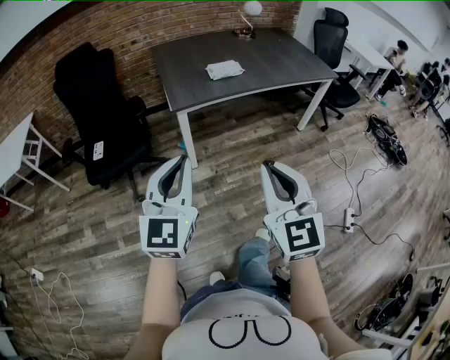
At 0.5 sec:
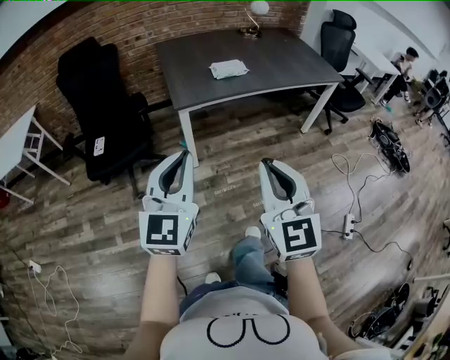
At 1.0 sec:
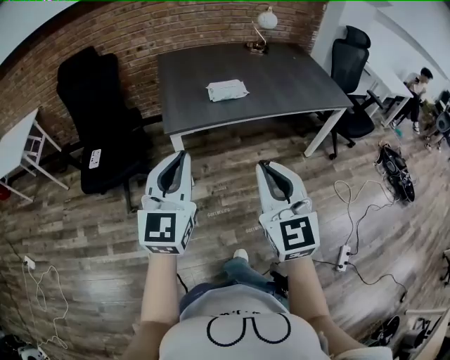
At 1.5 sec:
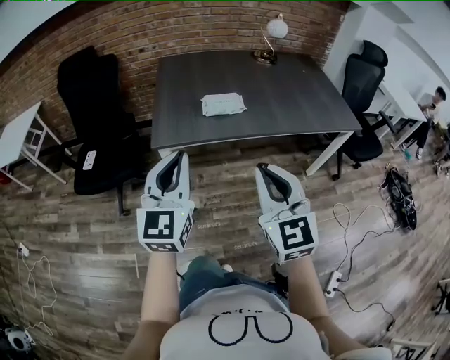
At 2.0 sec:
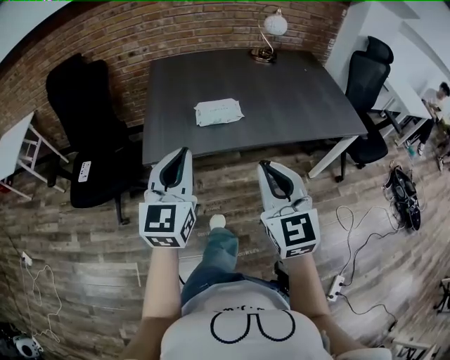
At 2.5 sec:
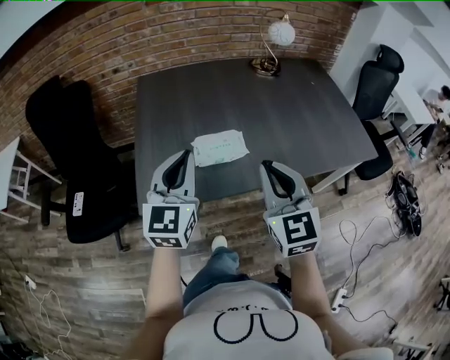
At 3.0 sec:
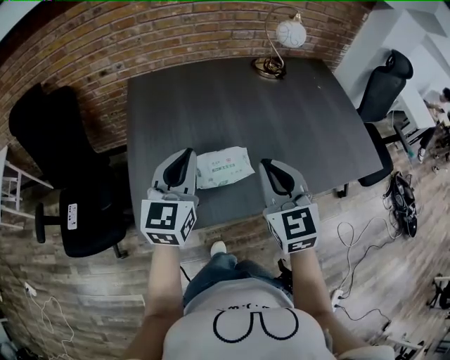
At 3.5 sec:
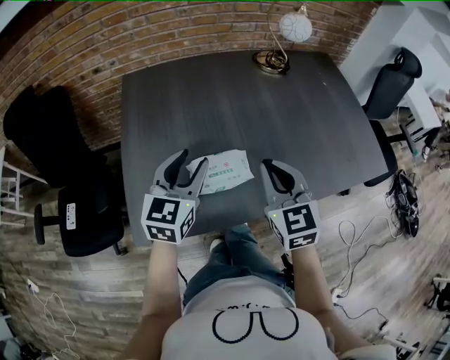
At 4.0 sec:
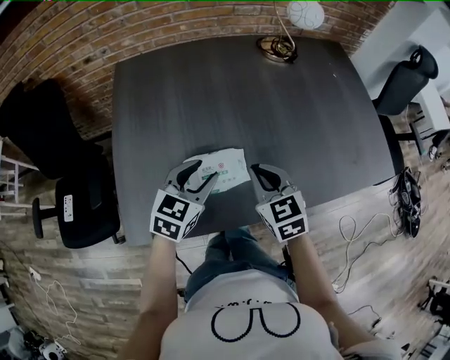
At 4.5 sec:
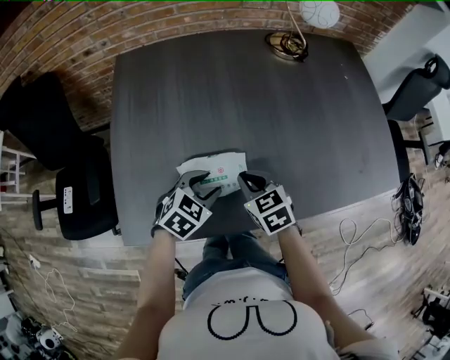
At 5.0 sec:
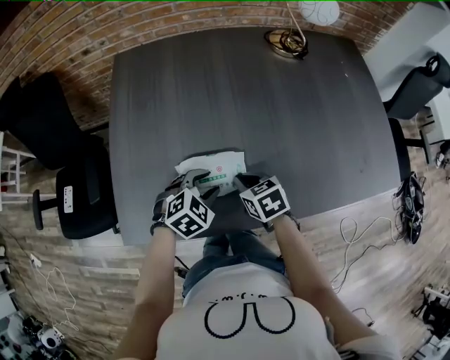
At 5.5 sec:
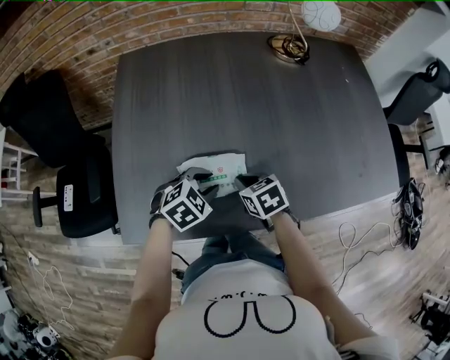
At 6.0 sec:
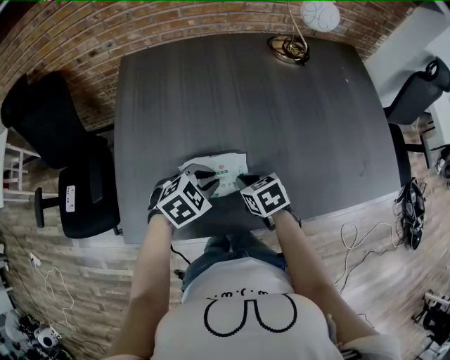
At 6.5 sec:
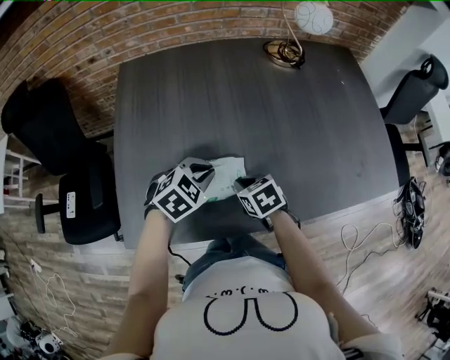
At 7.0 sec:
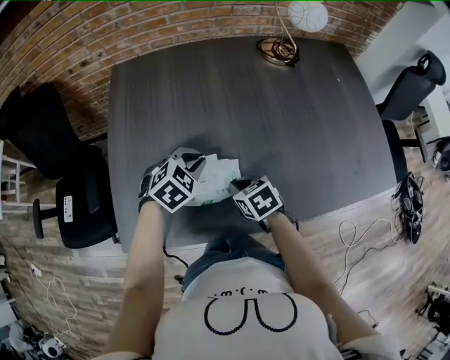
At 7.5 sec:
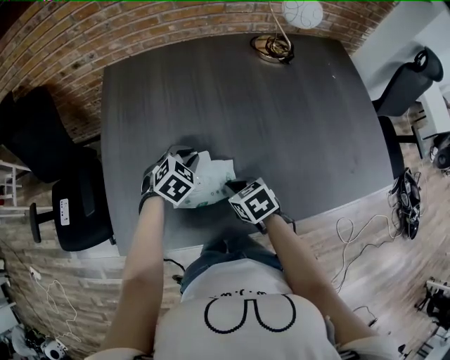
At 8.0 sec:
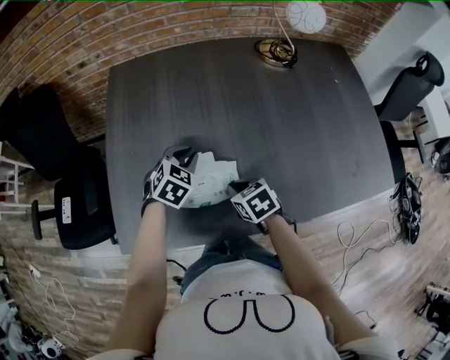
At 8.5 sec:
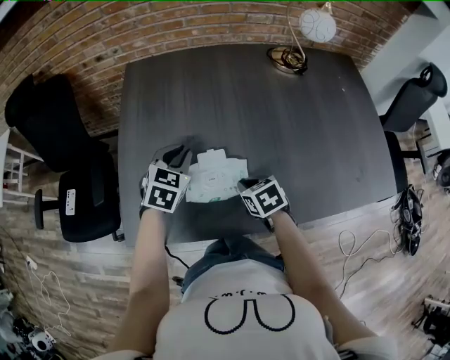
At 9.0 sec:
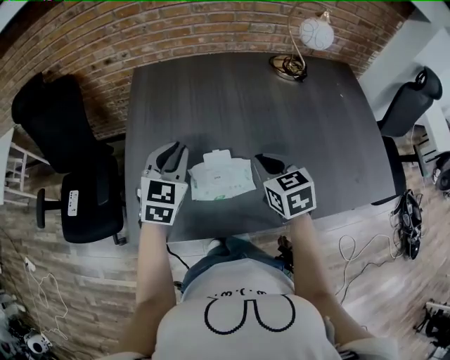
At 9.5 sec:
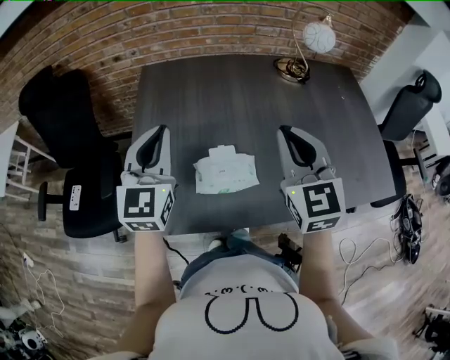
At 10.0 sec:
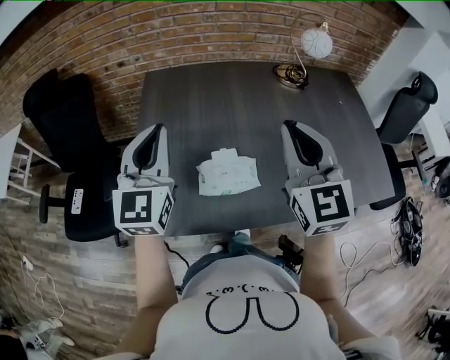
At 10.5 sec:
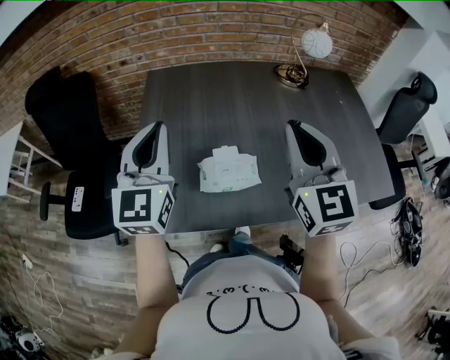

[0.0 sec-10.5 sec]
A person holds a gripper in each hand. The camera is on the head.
0.0 sec to 2.0 sec: The pair of grippers is taken forward and to the right, about 40 cm.
2.0 sec to 4.0 sec: Both grippers are carried forward, some 40 cm. The grippers both shift downward by about 20 cm. The left gripper points its fingers some 30 degrees further downward, and opens its fingers; the right gripper turns by about 30 degrees.
4.0 sec to 6.5 sec: The left gripper heads downward, covering roughly 5 cm, changes its angle by about 30 degrees, and closes. Meanwhile the right gripper travels downward by approximately 10 cm, and rotates some 30 degrees.
6.5 sec to 8.5 sec: The left gripper is displaced to the left and forward by roughly 10 cm, and turns by approximately 30 degrees.
8.5 sec to 10.5 sec: Both grippers travel together upward, some 30 cm. The right gripper tips its fingers upward by some 60 degrees; the left gripper tips its fingers upward by some 40 degrees.

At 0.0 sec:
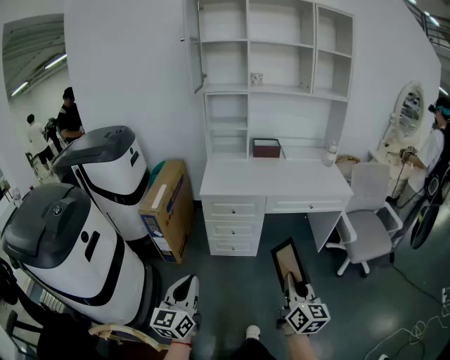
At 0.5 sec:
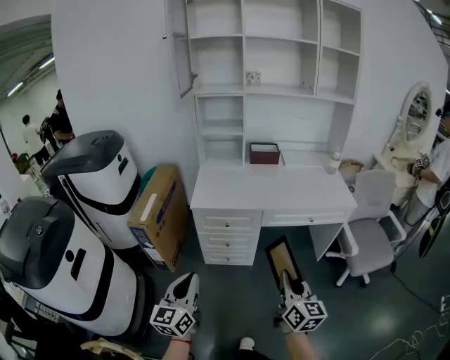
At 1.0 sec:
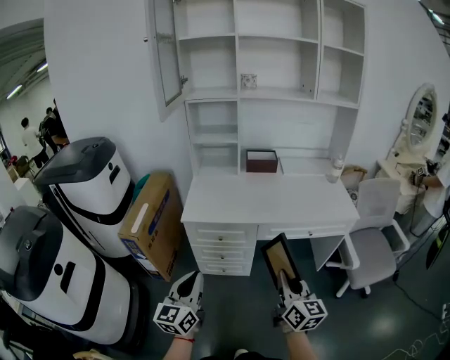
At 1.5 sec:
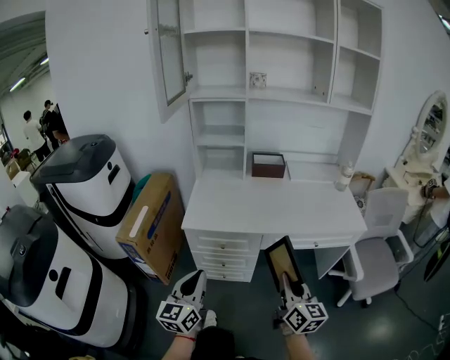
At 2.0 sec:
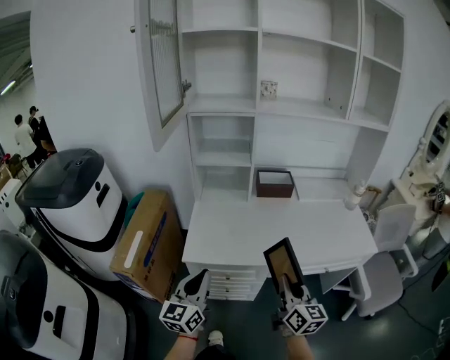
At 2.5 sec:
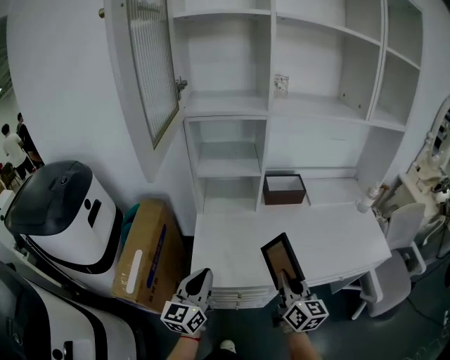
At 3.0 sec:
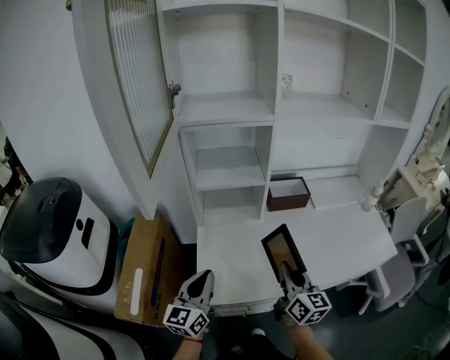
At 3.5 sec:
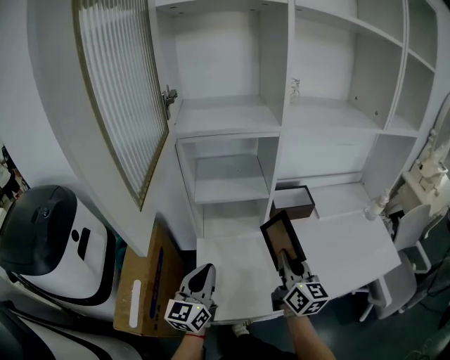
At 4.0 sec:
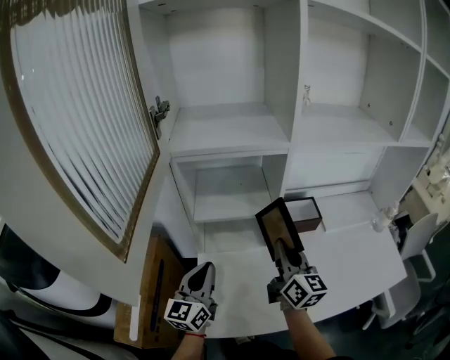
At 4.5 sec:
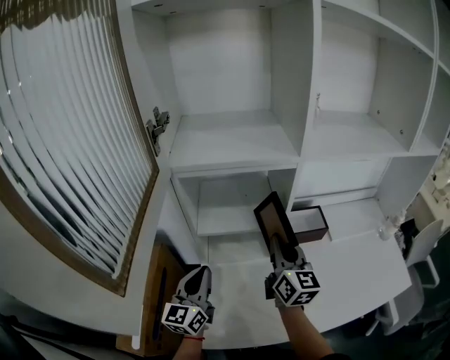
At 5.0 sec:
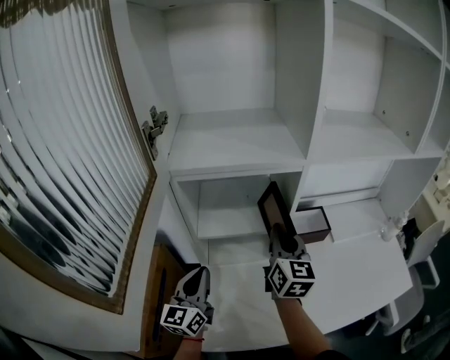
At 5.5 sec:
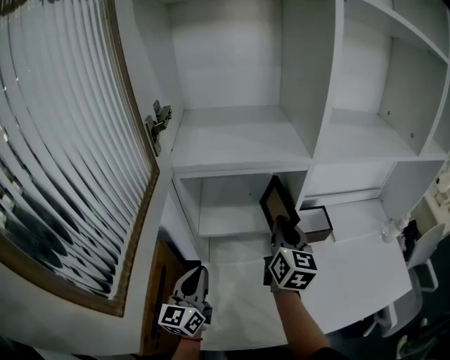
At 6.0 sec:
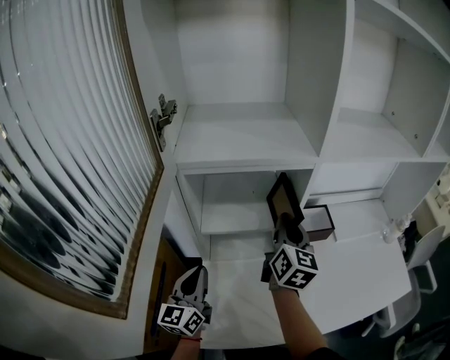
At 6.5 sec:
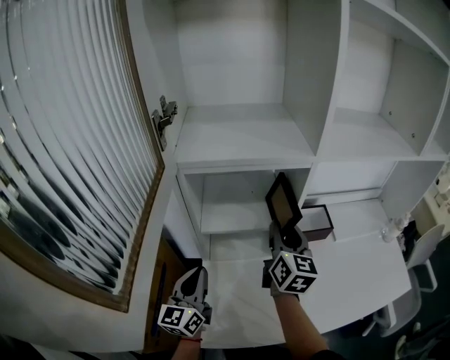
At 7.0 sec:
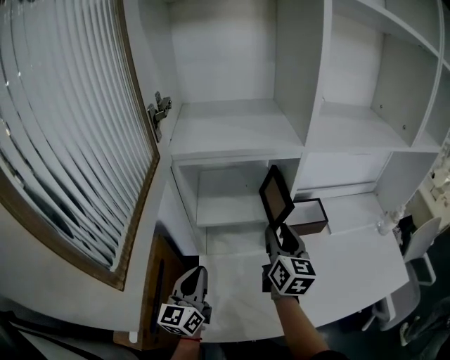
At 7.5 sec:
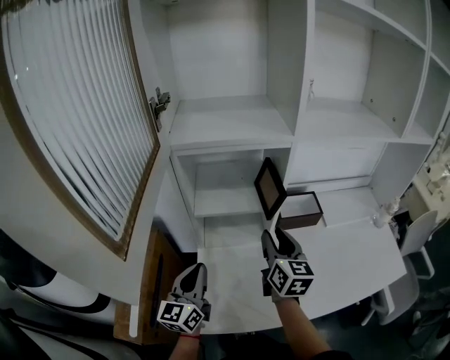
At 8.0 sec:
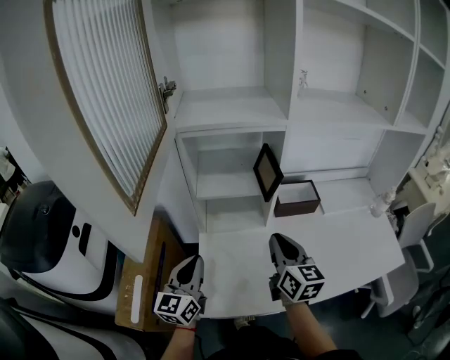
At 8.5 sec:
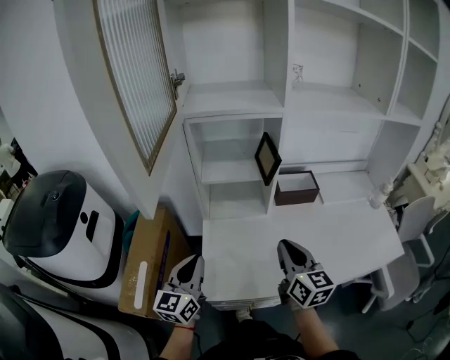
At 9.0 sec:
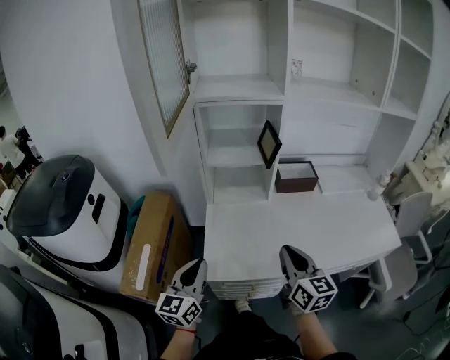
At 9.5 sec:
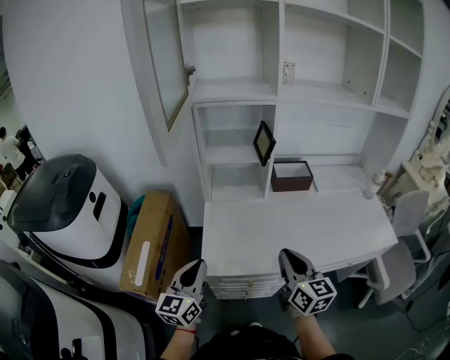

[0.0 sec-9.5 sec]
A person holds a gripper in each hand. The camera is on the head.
0.0 sec to 2.0 sec: Both grippers are carried forward, about 50 cm.
2.0 sec to 4.0 sec: The two grippers go roughly 35 cm forward.
4.0 sec to 5.5 sec: The right gripper goes roughly 10 cm forward, while the left gripper ends up about 5 cm from where it was.
5.5 sec to 7.5 sec: The left gripper travels backward by about 5 cm. The right gripper shifts some 10 cm backward, and opens up.
7.5 sec to 9.5 sec: Both grippers move backward, roughly 25 cm. The right gripper closes up.

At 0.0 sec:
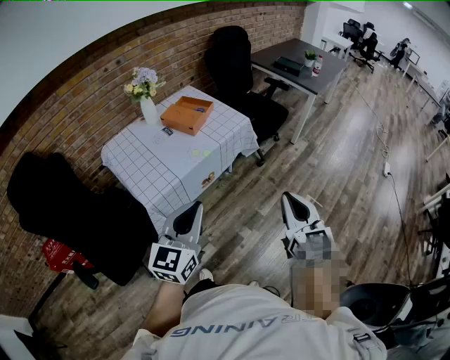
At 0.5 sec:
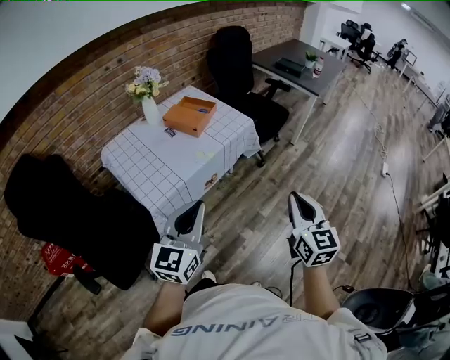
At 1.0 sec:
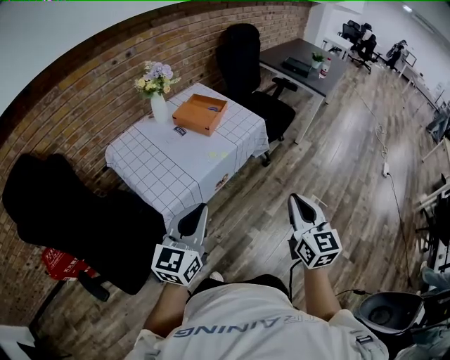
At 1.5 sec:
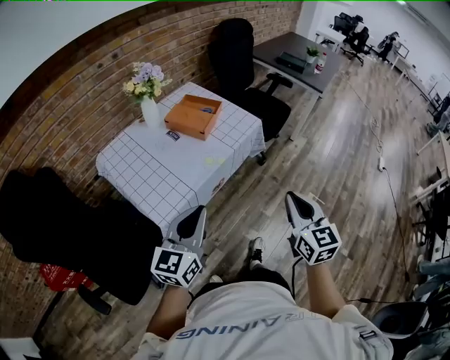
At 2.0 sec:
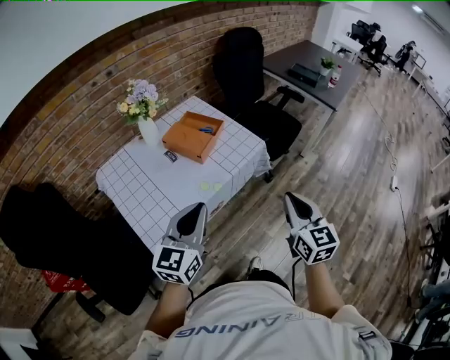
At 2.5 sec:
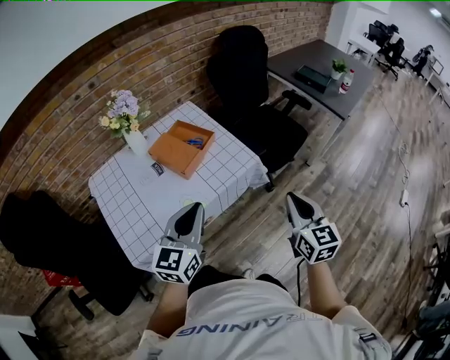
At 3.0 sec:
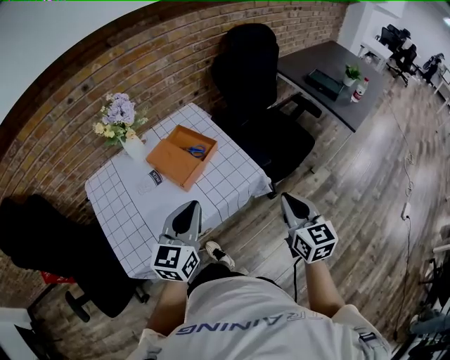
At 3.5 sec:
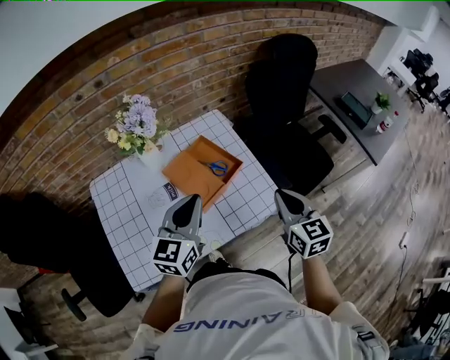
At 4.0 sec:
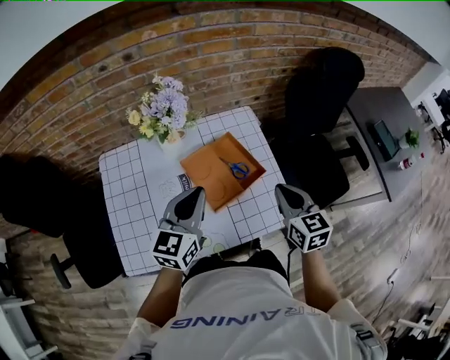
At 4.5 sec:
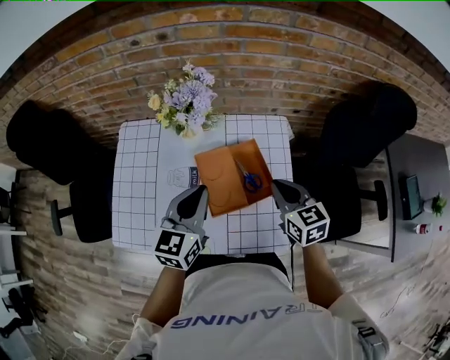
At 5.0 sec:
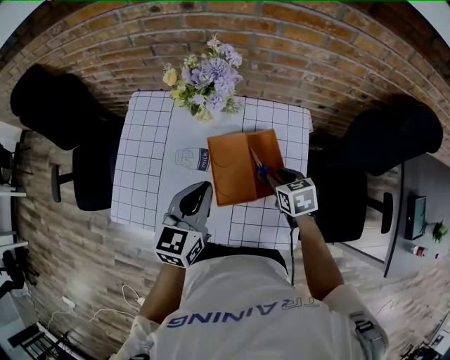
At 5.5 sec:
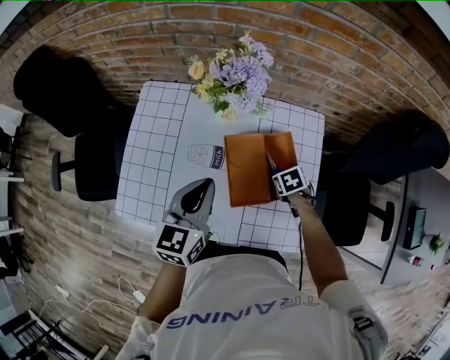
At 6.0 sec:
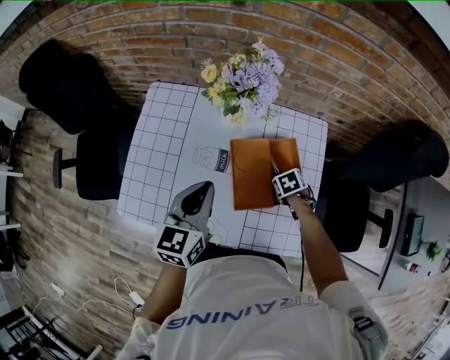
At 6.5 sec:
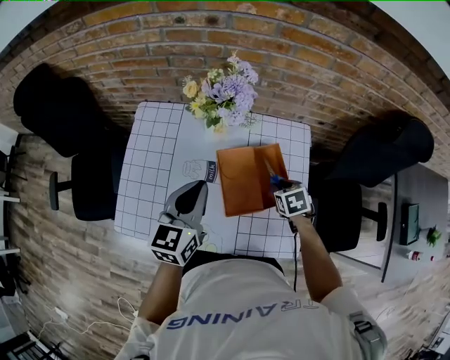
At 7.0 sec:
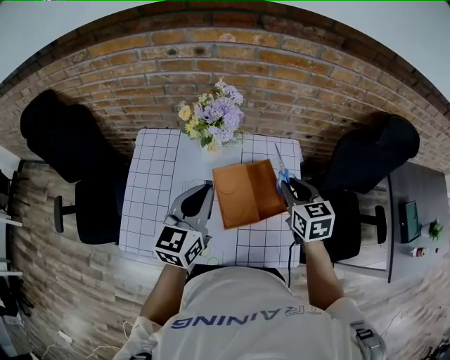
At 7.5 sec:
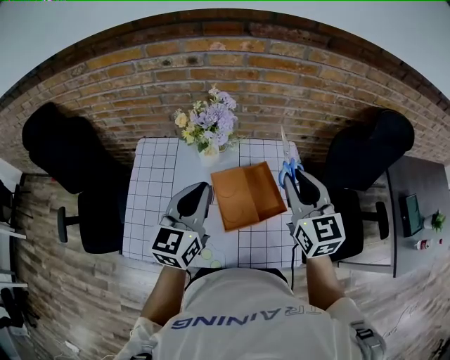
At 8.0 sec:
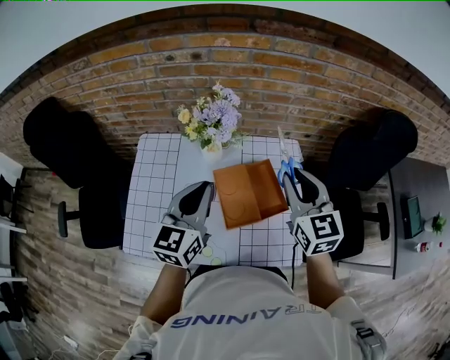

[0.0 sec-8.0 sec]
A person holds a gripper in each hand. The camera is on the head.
0.0 sec to 2.0 sec: Both grippers move forward, roughly 20 cm.
2.0 sec to 4.0 sec: The right gripper changes place by some 50 cm, and swivels about 30 degrees; the left gripper moves roughly 35 cm, and turns by approximately 30 degrees.
4.0 sec to 6.0 sec: The left gripper moves some 10 cm, and swivels approximately 30 degrees; the right gripper shifts approximately 30 cm downward, angles its fingers downward, by approximately 60 degrees, and opens up.
6.0 sec to 8.0 sec: The right gripper shifts some 40 cm upward, and points its fingers approximately 70 degrees further upward. Meanwhile the left gripper goes some 10 cm upward.
